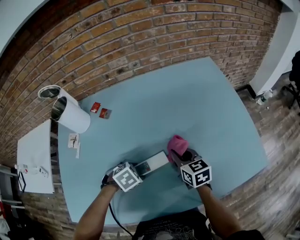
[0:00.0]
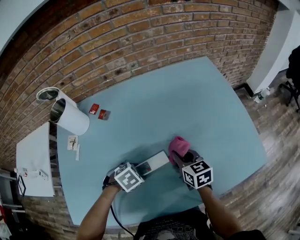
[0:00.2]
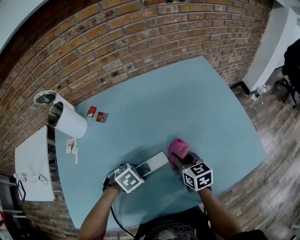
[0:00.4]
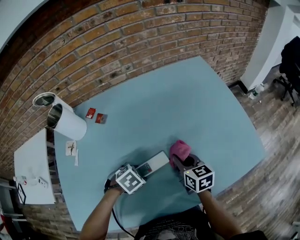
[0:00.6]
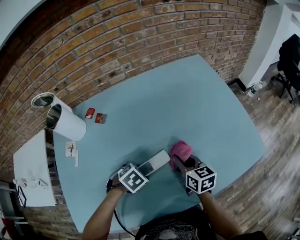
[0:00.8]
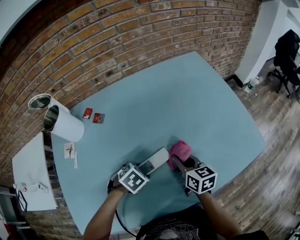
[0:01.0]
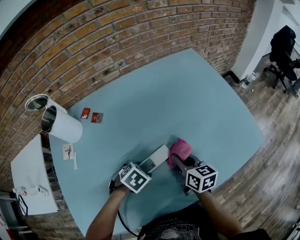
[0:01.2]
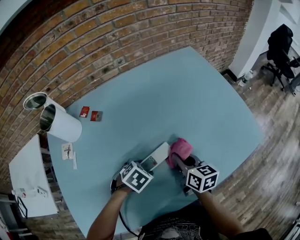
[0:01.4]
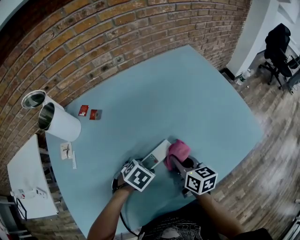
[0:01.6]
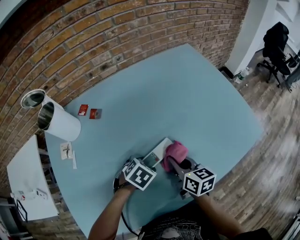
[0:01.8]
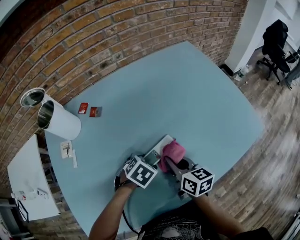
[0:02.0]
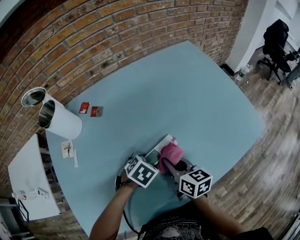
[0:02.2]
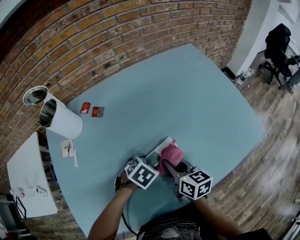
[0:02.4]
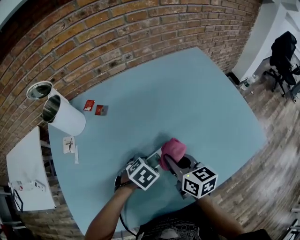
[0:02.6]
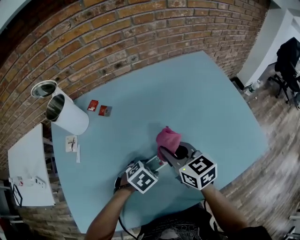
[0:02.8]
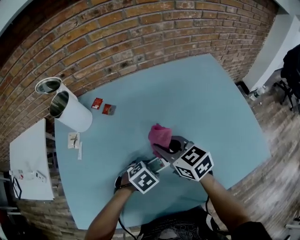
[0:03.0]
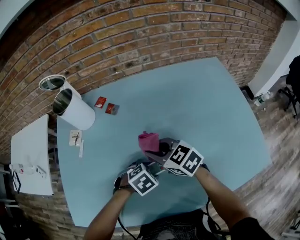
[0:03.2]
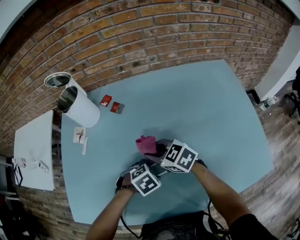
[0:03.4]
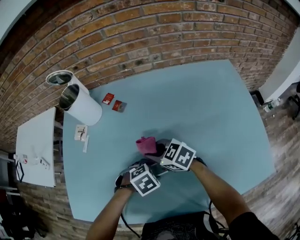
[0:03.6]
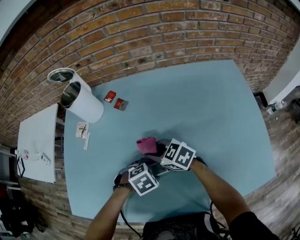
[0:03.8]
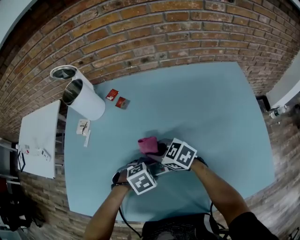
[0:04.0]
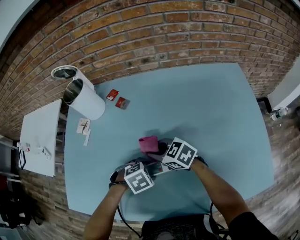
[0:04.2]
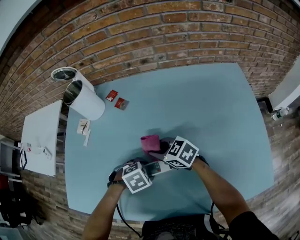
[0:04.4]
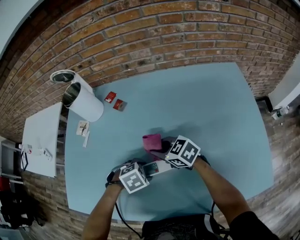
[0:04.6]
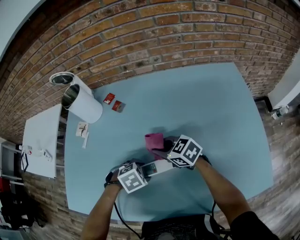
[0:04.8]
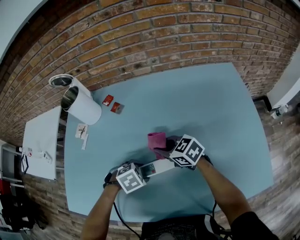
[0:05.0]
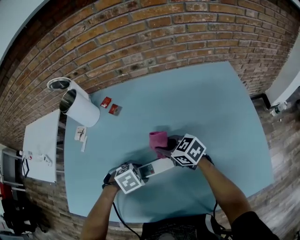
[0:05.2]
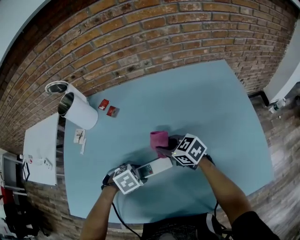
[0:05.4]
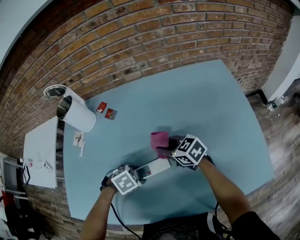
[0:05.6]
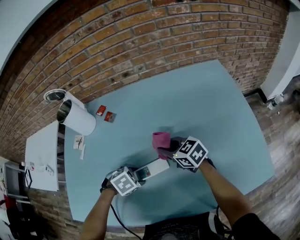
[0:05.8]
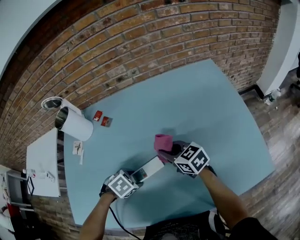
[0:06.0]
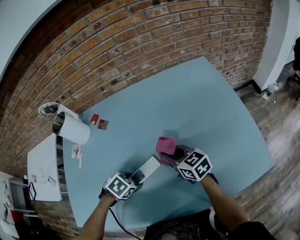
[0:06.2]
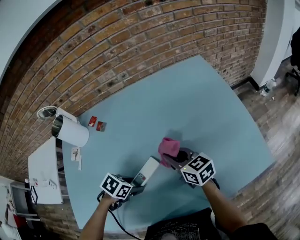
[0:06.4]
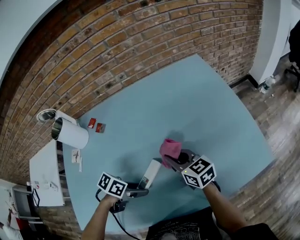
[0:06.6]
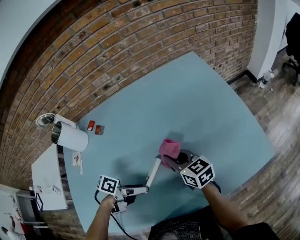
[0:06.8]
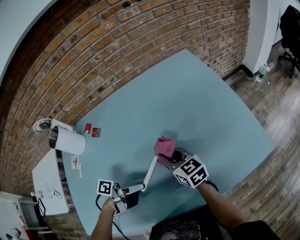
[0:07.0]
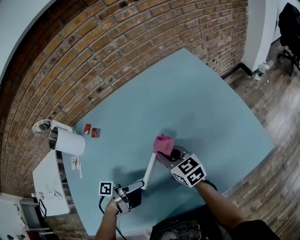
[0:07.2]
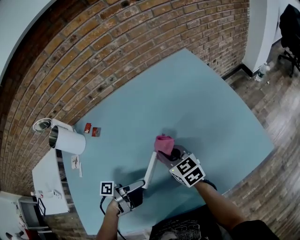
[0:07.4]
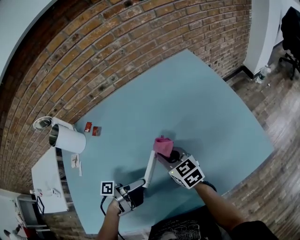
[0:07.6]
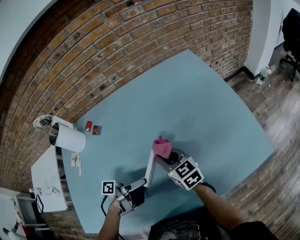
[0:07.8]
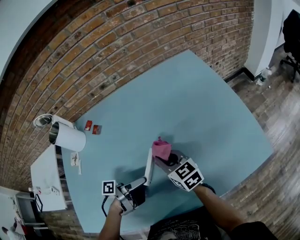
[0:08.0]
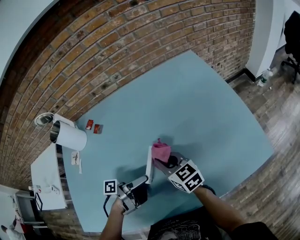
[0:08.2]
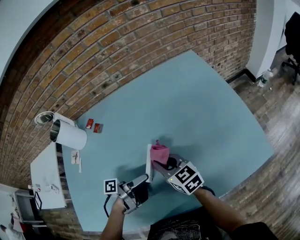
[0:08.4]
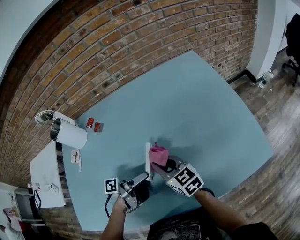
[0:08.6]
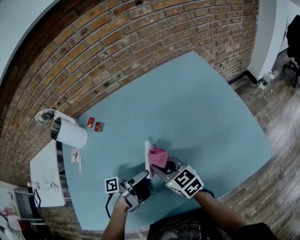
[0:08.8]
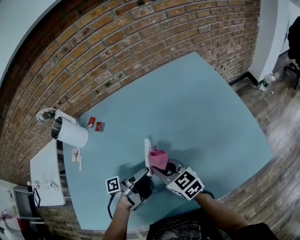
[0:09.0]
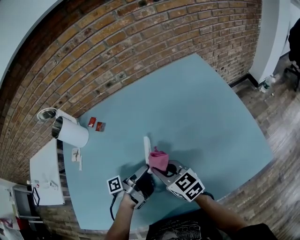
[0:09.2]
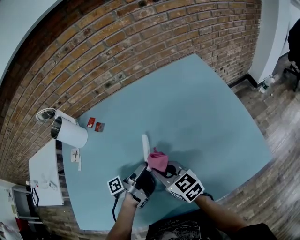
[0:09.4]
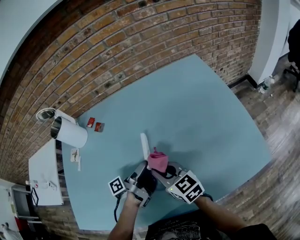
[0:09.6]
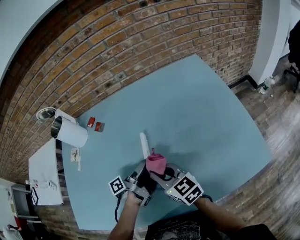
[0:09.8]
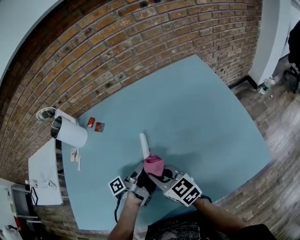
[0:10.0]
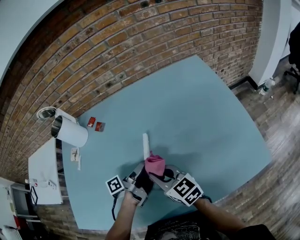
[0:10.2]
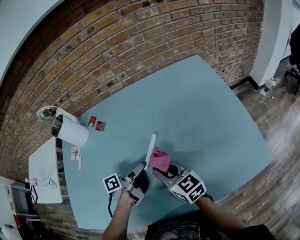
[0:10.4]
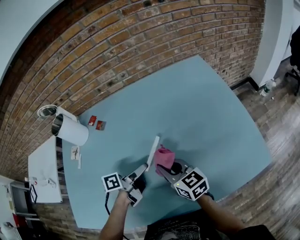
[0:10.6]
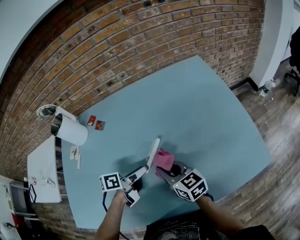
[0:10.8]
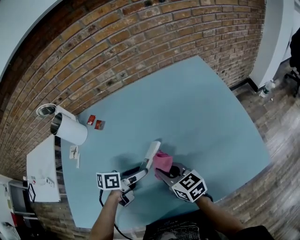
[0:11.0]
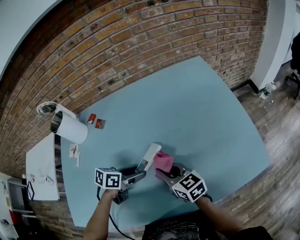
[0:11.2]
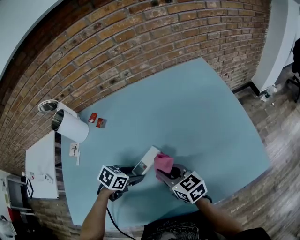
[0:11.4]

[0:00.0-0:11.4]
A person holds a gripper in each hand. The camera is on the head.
0:00.0 to 0:01.4: The right gripper shifts by some 5 cm, and turns by about 20 degrees.
0:01.4 to 0:02.8: The right gripper shifts approximately 10 cm to the left and upward, and changes its angle by approximately 30 degrees.
0:02.8 to 0:04.2: The right gripper travels downward by some 10 cm, and swivels roughly 50 degrees.
0:04.2 to 0:05.6: The right gripper changes place by about 10 cm.
0:05.6 to 0:07.2: The right gripper ends up about 10 cm from where it was, and rotates approximately 40 degrees. Meanwhile the left gripper ends up roughly 10 cm from where it was, and tilts its fingers roughly 70 degrees upward.
0:07.2 to 0:08.6: The right gripper shifts approximately 5 cm backward.
0:08.6 to 0:10.0: The left gripper is displaced forward by about 5 cm, and changes its angle by some 30 degrees.
0:10.0 to 0:11.4: The left gripper moves to the left, approximately 5 cm, and tilts its fingers roughly 50 degrees downward.

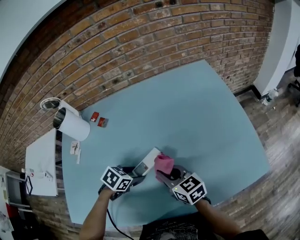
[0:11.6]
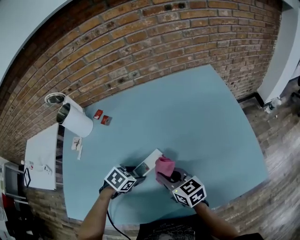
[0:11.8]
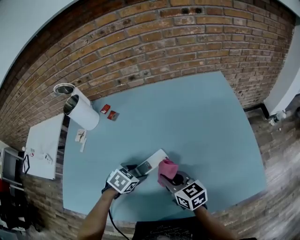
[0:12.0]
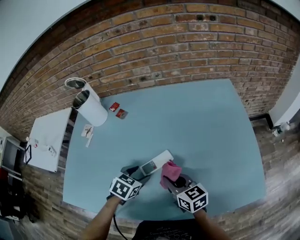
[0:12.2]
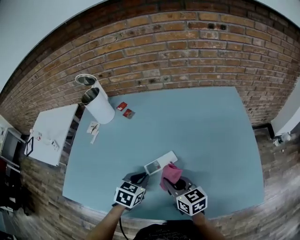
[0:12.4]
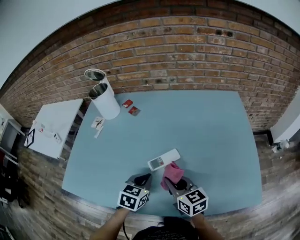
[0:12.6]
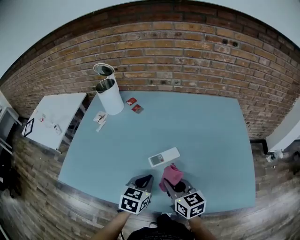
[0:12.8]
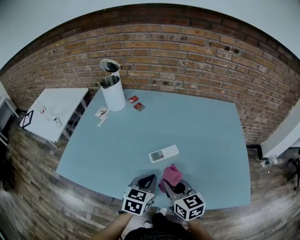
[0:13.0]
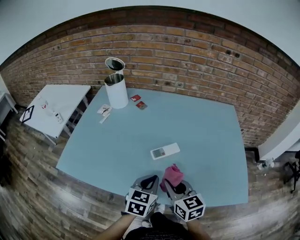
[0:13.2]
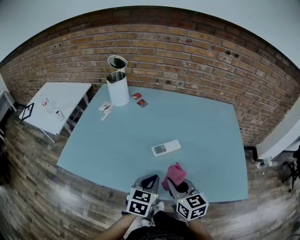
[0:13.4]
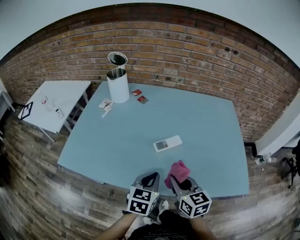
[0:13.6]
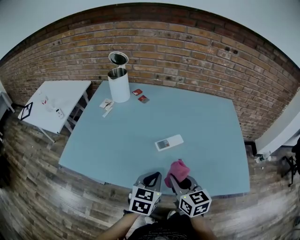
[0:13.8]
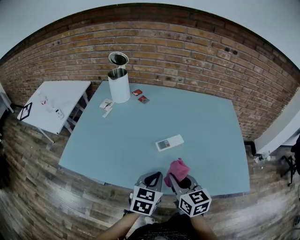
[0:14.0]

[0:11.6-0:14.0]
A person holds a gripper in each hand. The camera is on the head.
0:11.6 to 0:12.8: The left gripper moves upward, approximately 10 cm, changes its angle by roughly 50 degrees, and closes; the right gripper changes place by roughly 10 cm.
0:12.8 to 0:14.0: The grippers both shift backward by some 10 cm.

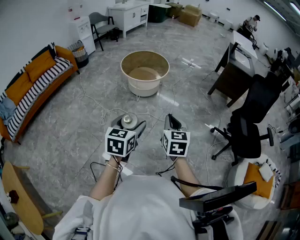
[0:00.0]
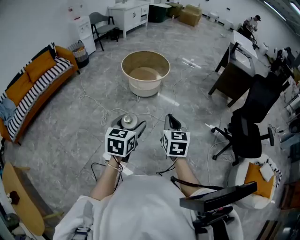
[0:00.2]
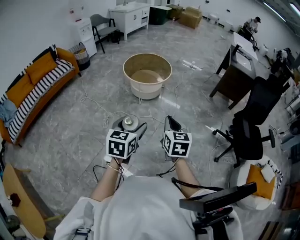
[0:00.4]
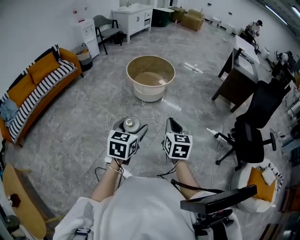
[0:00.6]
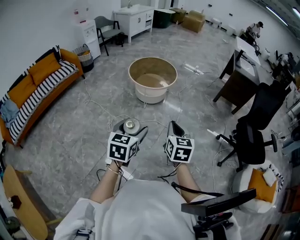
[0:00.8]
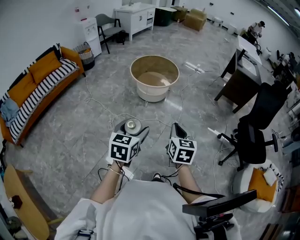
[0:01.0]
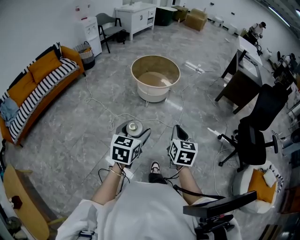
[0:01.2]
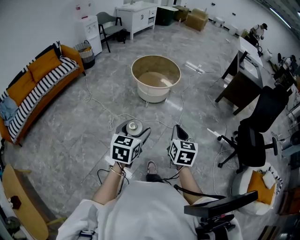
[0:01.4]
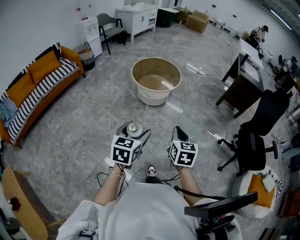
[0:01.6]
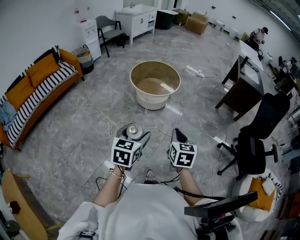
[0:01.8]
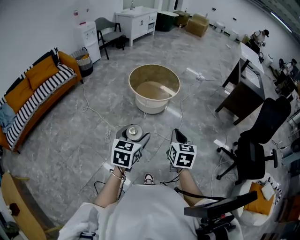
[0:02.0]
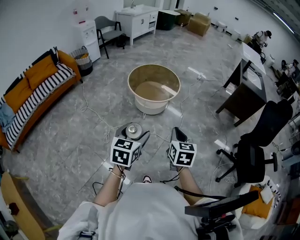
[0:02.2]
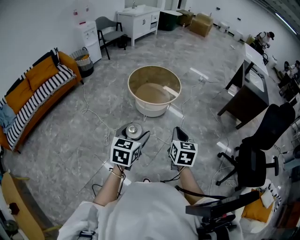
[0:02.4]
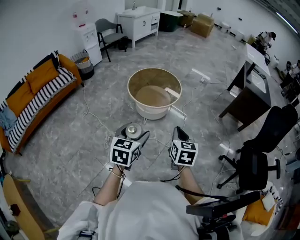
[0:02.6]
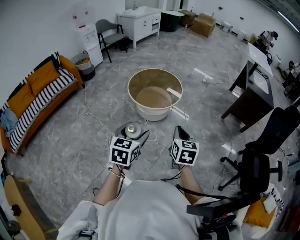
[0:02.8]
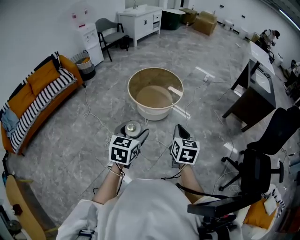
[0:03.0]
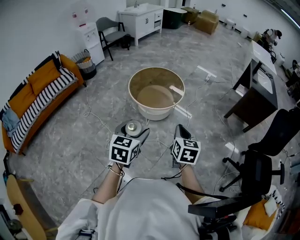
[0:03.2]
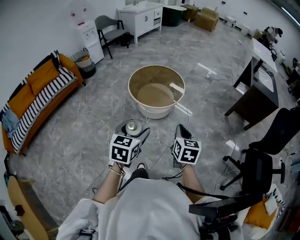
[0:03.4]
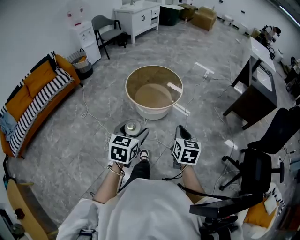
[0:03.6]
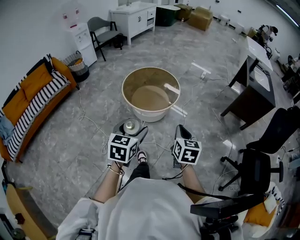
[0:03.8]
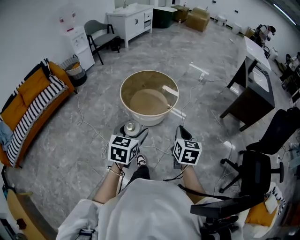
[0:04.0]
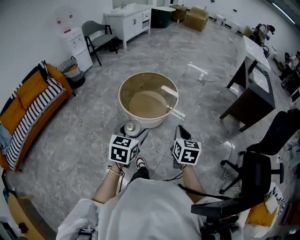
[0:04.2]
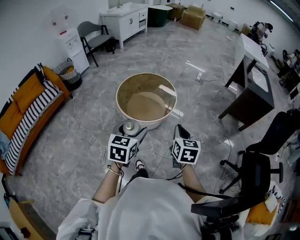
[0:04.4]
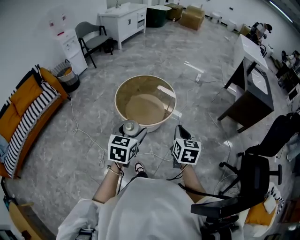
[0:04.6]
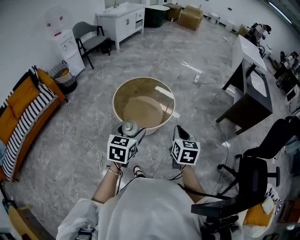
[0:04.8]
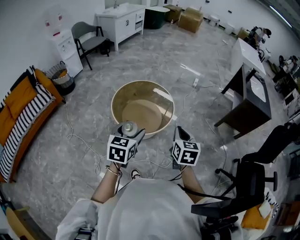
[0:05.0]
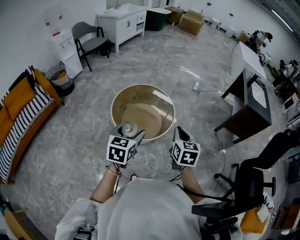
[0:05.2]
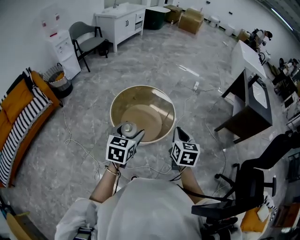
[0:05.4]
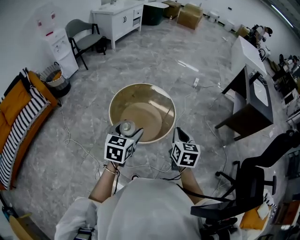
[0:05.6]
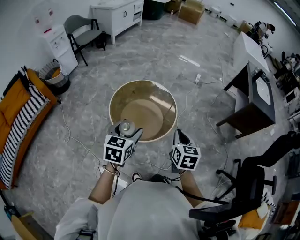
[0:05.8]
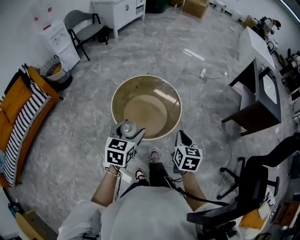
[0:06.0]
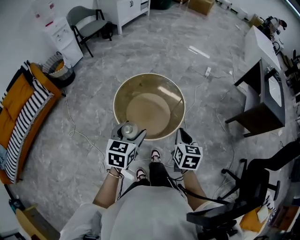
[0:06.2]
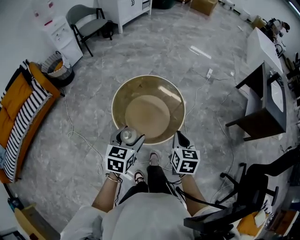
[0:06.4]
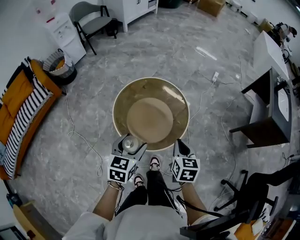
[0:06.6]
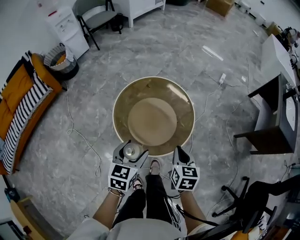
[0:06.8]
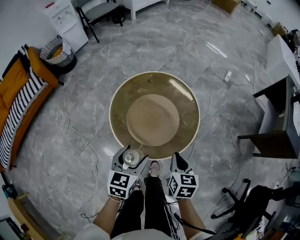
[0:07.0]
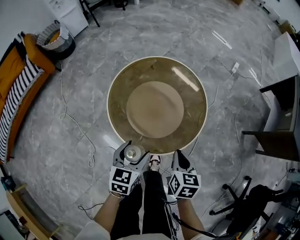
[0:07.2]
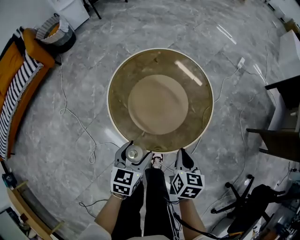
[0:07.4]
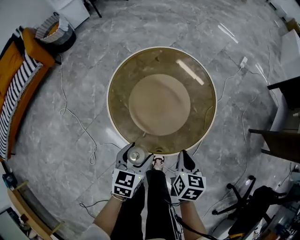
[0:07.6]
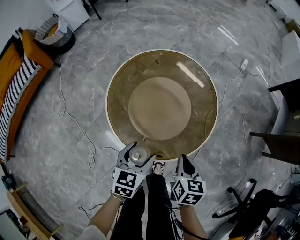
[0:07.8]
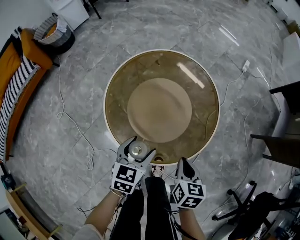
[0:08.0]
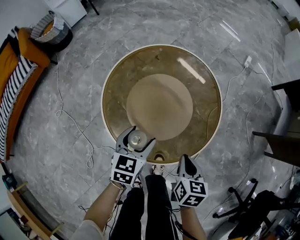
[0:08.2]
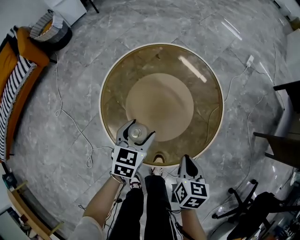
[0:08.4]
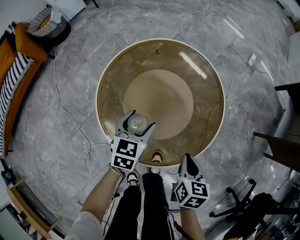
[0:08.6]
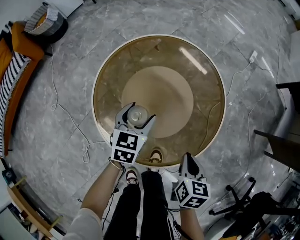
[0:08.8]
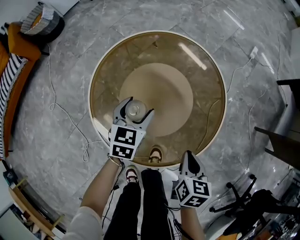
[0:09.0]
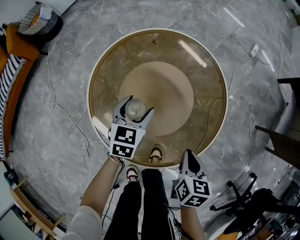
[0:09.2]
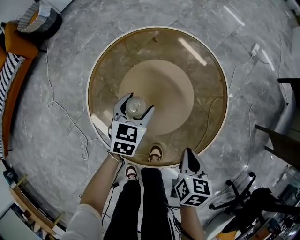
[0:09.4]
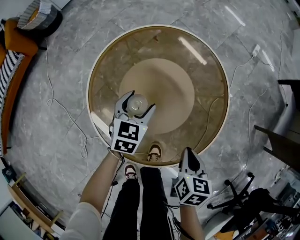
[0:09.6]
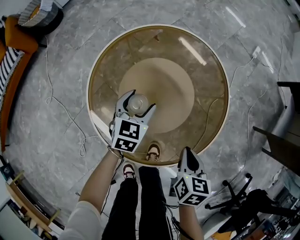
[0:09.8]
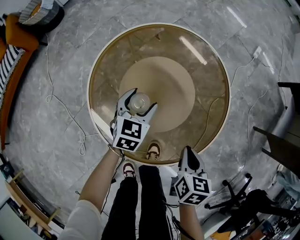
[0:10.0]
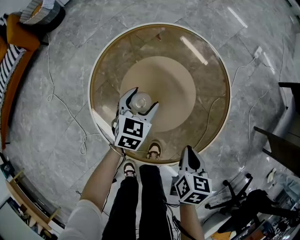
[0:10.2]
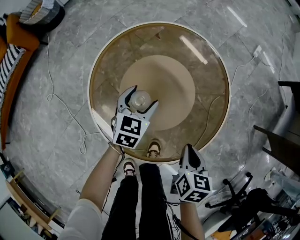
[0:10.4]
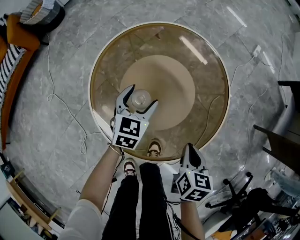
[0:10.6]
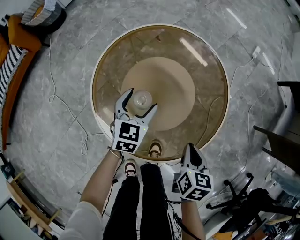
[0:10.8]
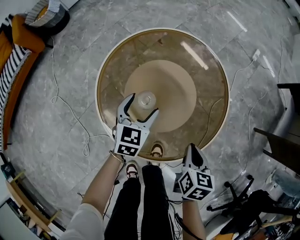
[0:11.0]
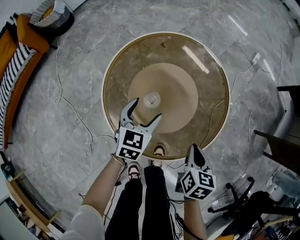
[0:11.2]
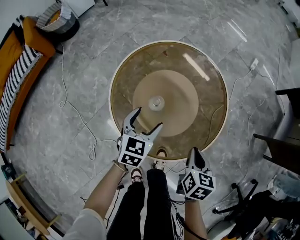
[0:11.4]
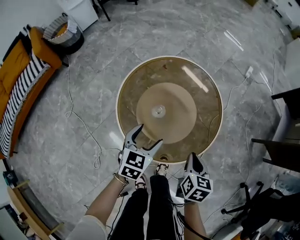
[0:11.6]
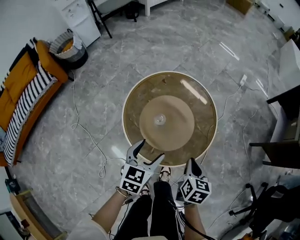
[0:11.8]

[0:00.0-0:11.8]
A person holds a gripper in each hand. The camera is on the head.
0:00.0 to 0:01.4: The two grippers go approximately 10 cm to the left.
0:01.4 to 0:03.0: The two grippers go about 25 cm forward.
0:03.0 to 0:04.4: Both grippers move forward, about 15 cm.
0:04.4 to 0:06.0: The grippers both shift forward by about 20 cm.
0:06.0 to 0:07.4: The left gripper travels downward by approximately 30 cm; the right gripper travels downward and forward by roughly 30 cm.
0:07.4 to 0:08.8: The right gripper goes some 10 cm downward and forward; the left gripper goes approximately 20 cm forward and downward.
0:08.8 to 0:10.4: The grippers stay close to where they were, moving slightly.
0:10.4 to 0:11.8: The left gripper goes about 25 cm upward and backward; the right gripper travels upward and backward by approximately 15 cm.
